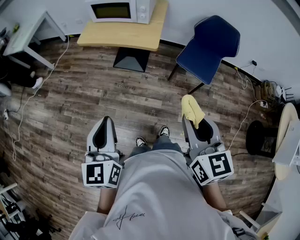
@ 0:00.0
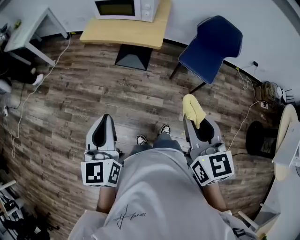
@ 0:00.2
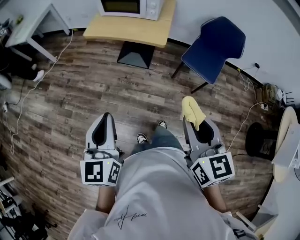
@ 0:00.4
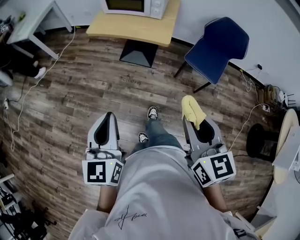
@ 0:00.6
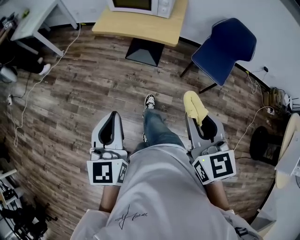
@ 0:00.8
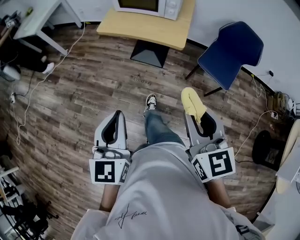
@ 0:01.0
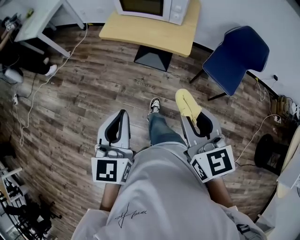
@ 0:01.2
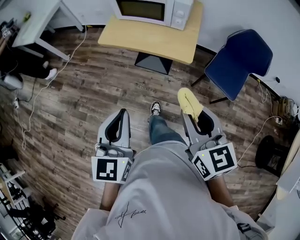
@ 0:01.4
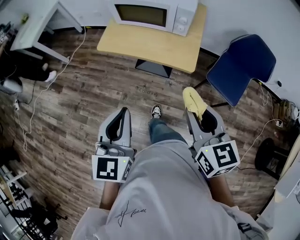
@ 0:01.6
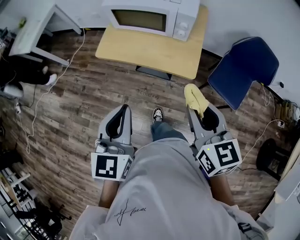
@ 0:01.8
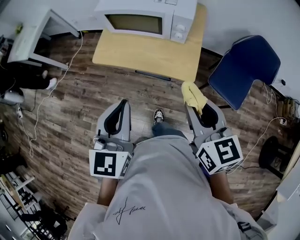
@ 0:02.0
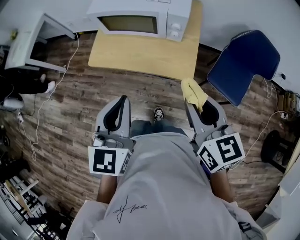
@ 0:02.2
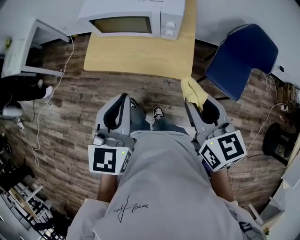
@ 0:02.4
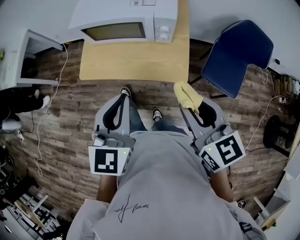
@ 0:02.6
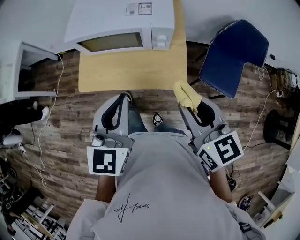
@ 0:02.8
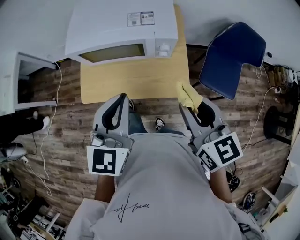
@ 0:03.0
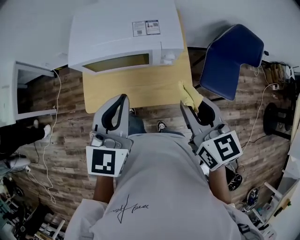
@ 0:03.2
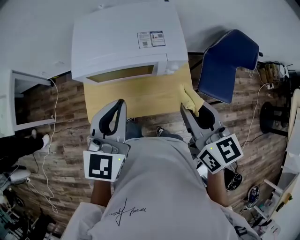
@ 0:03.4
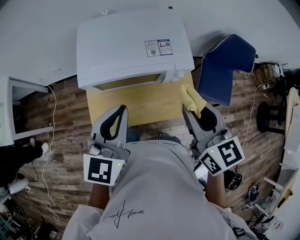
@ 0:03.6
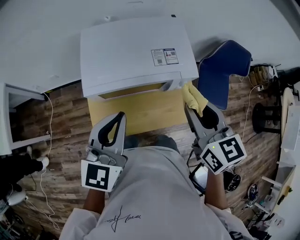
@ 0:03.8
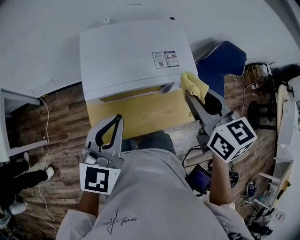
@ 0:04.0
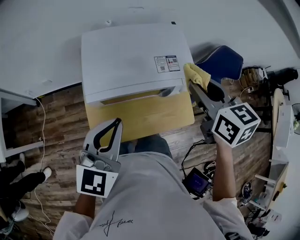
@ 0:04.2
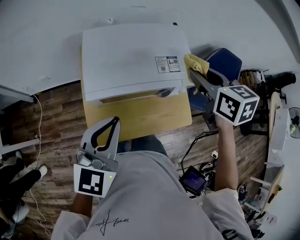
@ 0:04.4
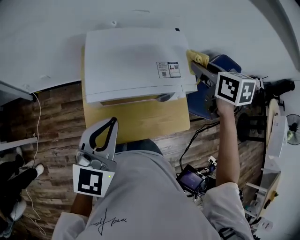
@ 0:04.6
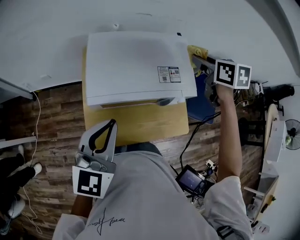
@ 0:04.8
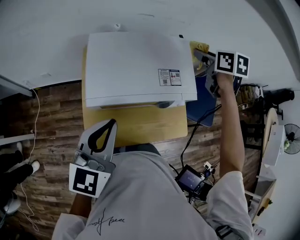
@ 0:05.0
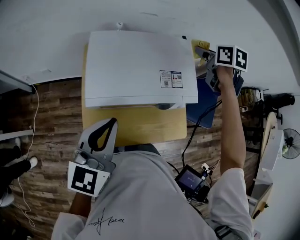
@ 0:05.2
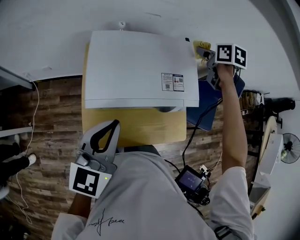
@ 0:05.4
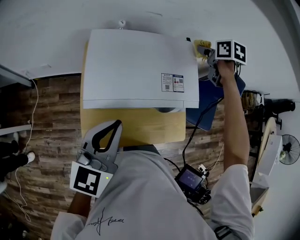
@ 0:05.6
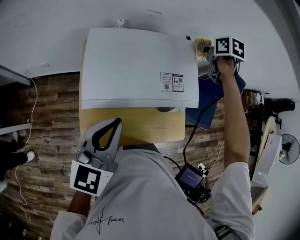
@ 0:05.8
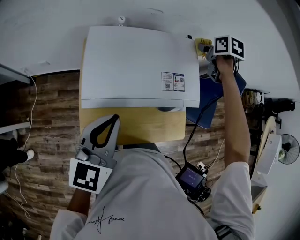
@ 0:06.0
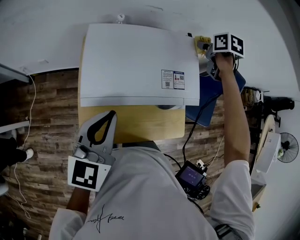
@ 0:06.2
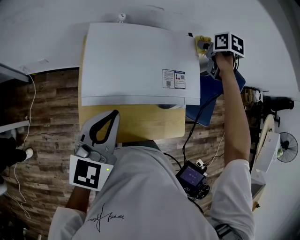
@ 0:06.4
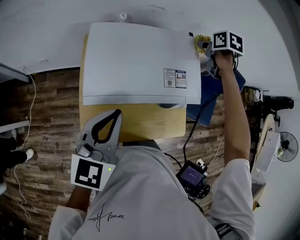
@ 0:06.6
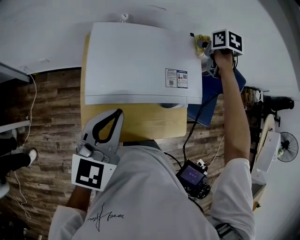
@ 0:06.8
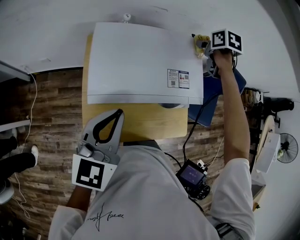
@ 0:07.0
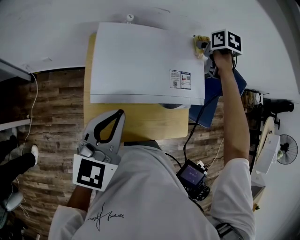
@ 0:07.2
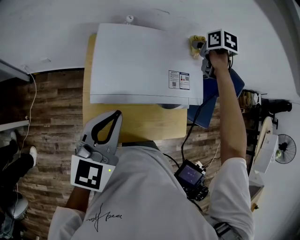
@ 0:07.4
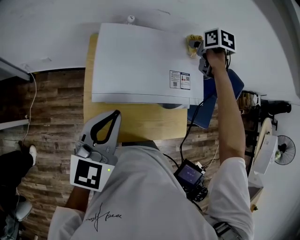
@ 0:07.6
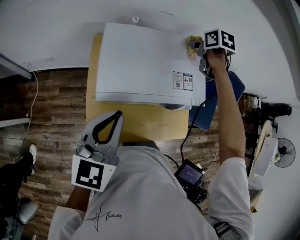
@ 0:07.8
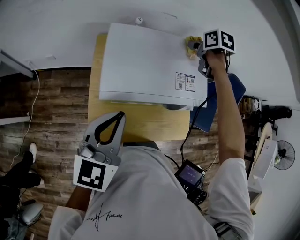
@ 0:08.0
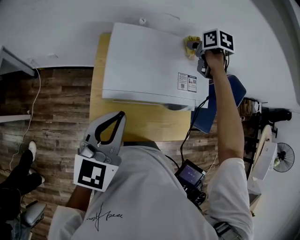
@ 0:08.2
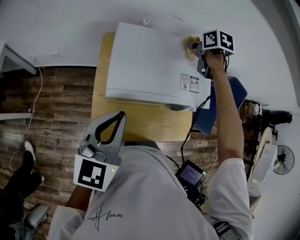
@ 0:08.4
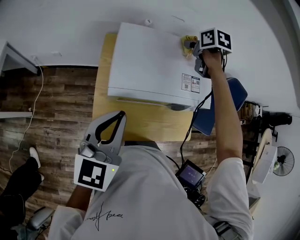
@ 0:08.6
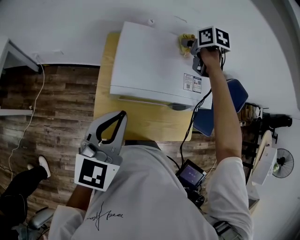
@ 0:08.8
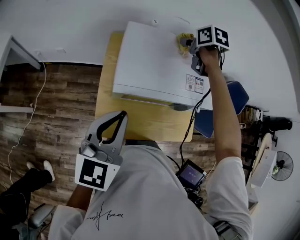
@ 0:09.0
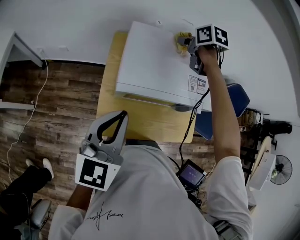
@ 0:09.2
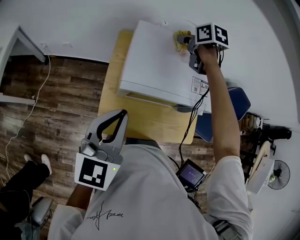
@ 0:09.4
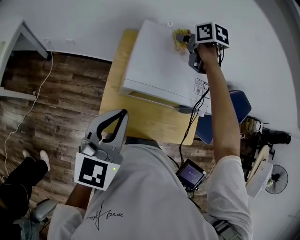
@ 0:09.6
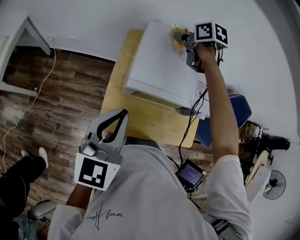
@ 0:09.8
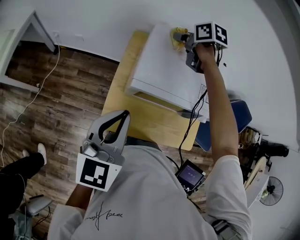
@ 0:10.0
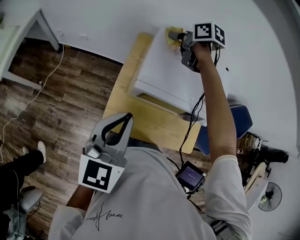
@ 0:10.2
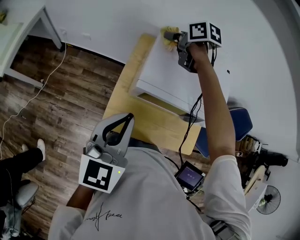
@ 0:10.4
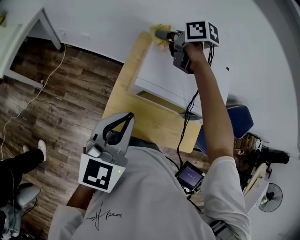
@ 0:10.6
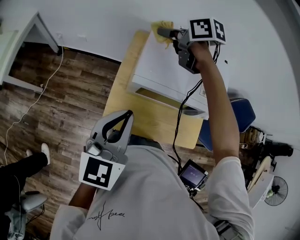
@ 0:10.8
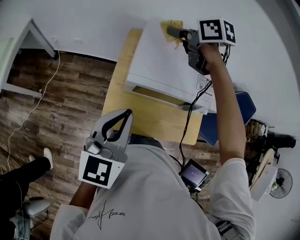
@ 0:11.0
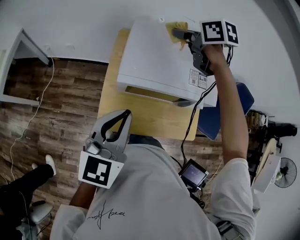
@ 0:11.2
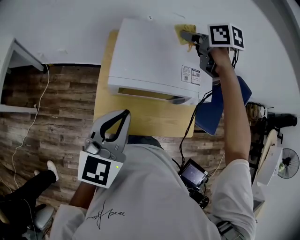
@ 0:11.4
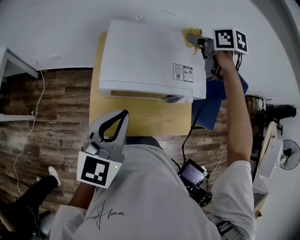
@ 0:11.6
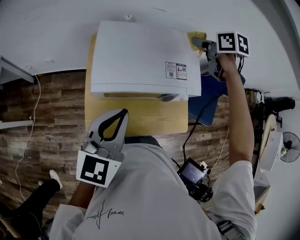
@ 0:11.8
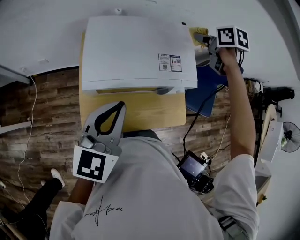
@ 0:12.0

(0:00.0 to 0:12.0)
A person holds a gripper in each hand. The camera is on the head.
0:00.0 - 0:01.6: Both grippers move forward, some 25 cm.
0:01.6 - 0:03.0: Both grippers travel together forward, approximately 25 cm. The left gripper swivels some 20 degrees.
0:03.0 - 0:04.4: The right gripper moves forward and to the left, roughly 25 cm, and swivels about 20 degrees. Meanwhile the left gripper heads to the left and forward, covering some 20 cm.
0:04.4 - 0:06.0: The left gripper moves forward, approximately 5 cm; the right gripper travels forward by roughly 25 cm, and swivels roughly 20 degrees.
0:06.0 - 0:07.6: The right gripper shifts about 10 cm to the left.
0:07.6 - 0:09.0: The left gripper ends up approximately 5 cm from where it was, while the right gripper goes roughly 15 cm to the left.
0:09.0 - 0:10.4: The right gripper heads to the left, covering roughly 20 cm, and changes its angle by approximately 30 degrees.
0:10.4 - 0:12.0: The right gripper changes place by about 40 cm, and changes its angle by roughly 30 degrees; the left gripper changes place by about 15 cm.

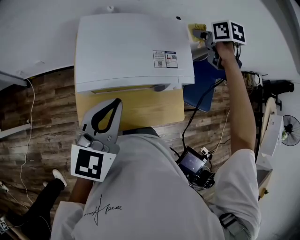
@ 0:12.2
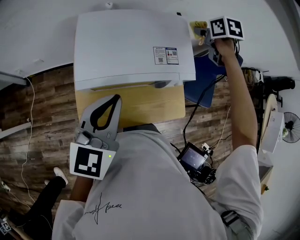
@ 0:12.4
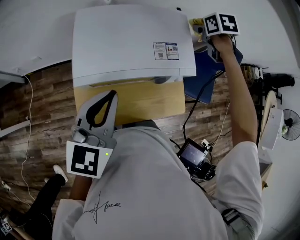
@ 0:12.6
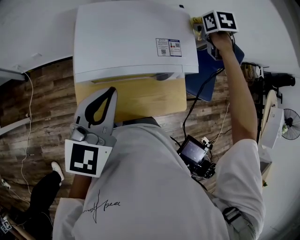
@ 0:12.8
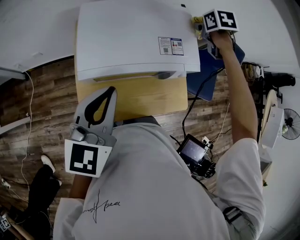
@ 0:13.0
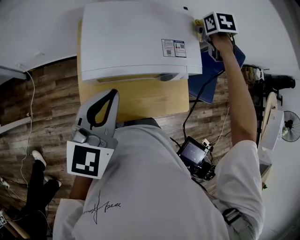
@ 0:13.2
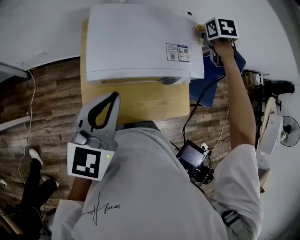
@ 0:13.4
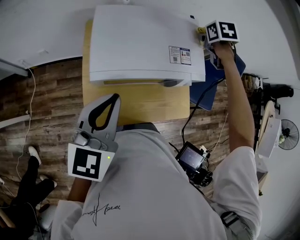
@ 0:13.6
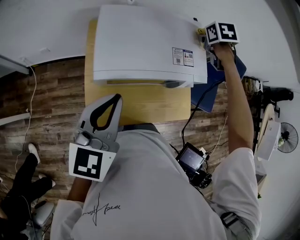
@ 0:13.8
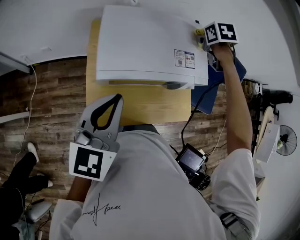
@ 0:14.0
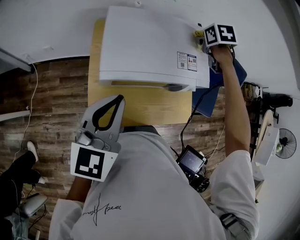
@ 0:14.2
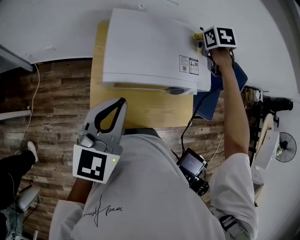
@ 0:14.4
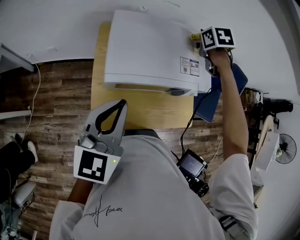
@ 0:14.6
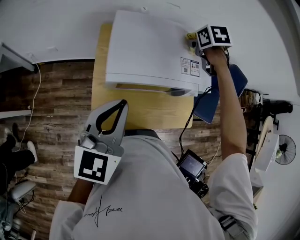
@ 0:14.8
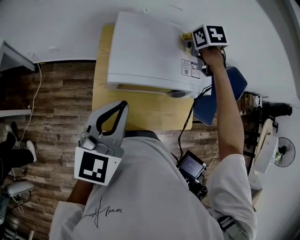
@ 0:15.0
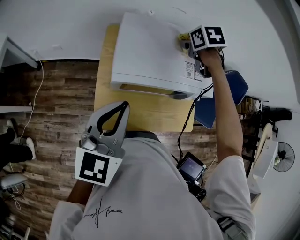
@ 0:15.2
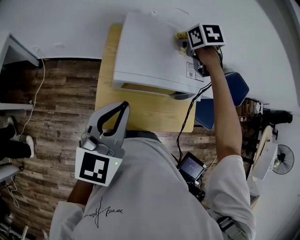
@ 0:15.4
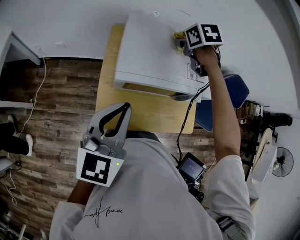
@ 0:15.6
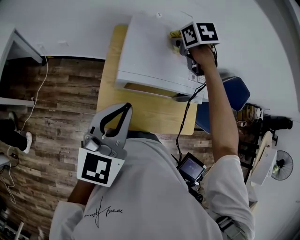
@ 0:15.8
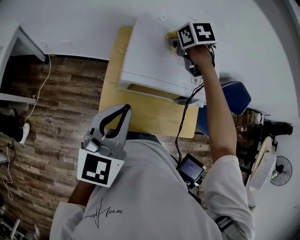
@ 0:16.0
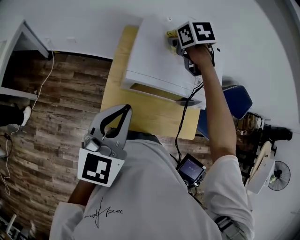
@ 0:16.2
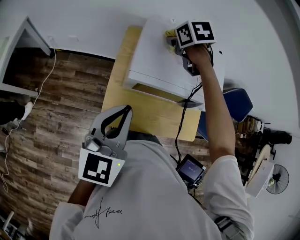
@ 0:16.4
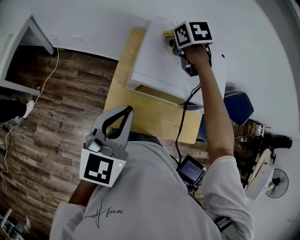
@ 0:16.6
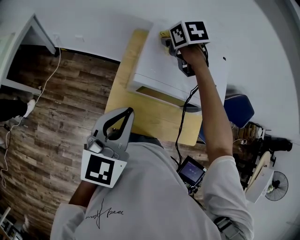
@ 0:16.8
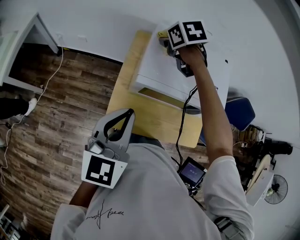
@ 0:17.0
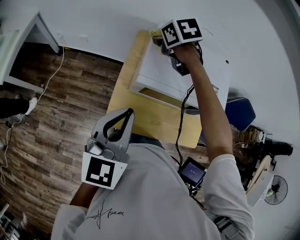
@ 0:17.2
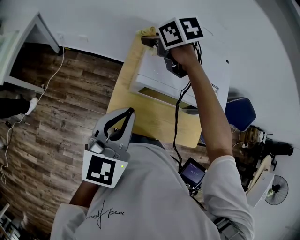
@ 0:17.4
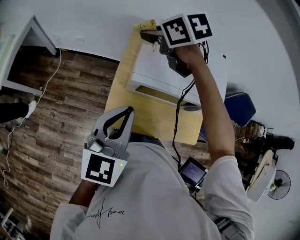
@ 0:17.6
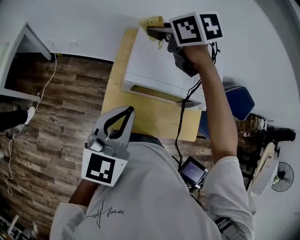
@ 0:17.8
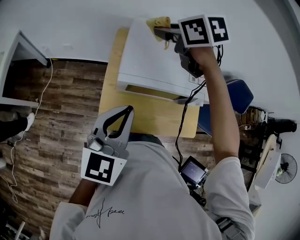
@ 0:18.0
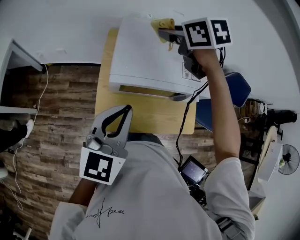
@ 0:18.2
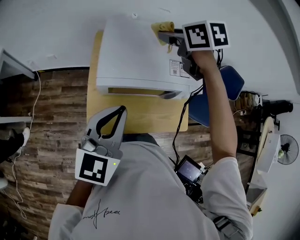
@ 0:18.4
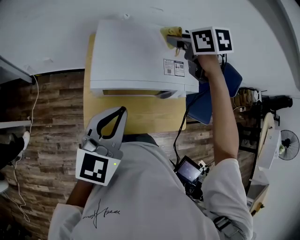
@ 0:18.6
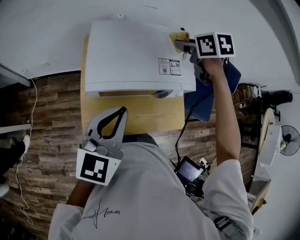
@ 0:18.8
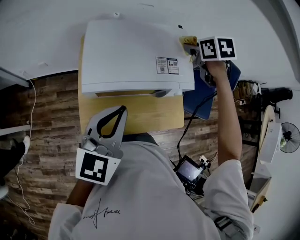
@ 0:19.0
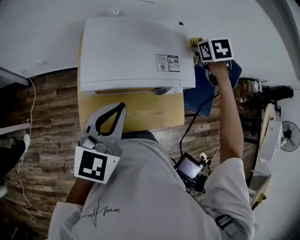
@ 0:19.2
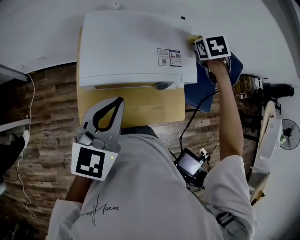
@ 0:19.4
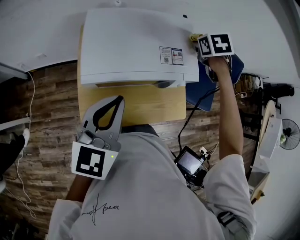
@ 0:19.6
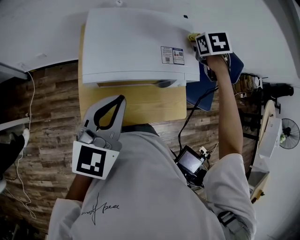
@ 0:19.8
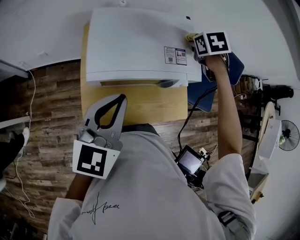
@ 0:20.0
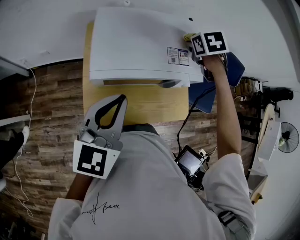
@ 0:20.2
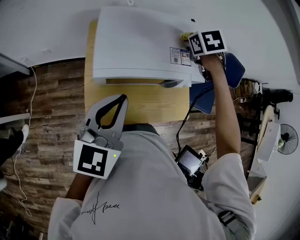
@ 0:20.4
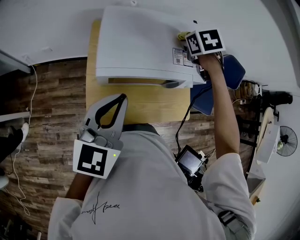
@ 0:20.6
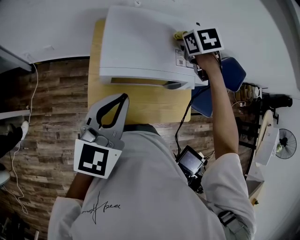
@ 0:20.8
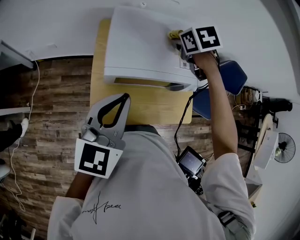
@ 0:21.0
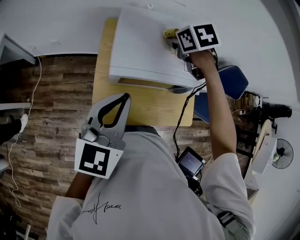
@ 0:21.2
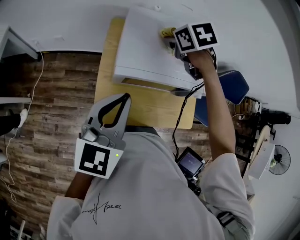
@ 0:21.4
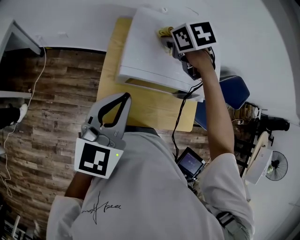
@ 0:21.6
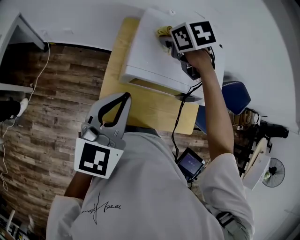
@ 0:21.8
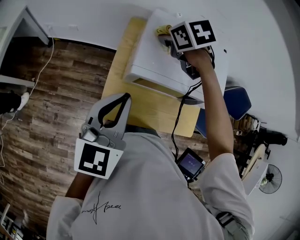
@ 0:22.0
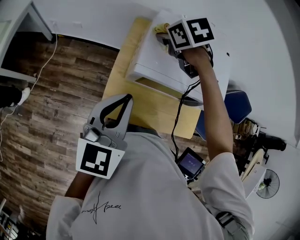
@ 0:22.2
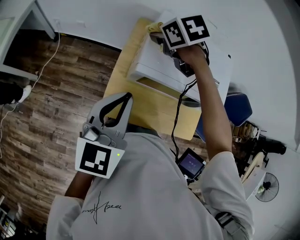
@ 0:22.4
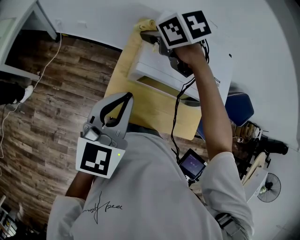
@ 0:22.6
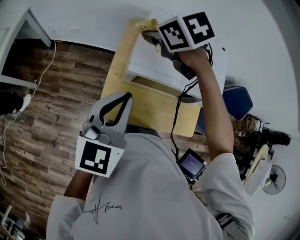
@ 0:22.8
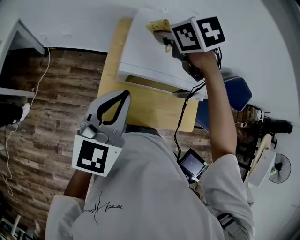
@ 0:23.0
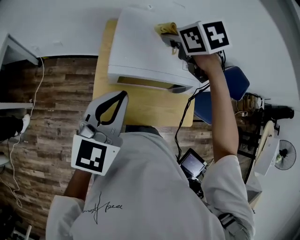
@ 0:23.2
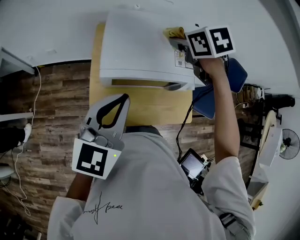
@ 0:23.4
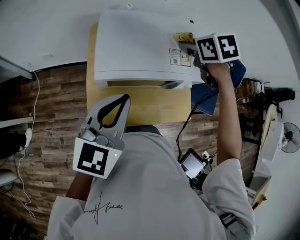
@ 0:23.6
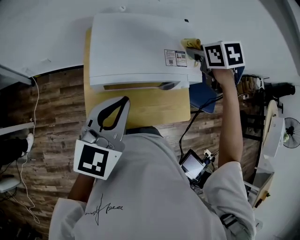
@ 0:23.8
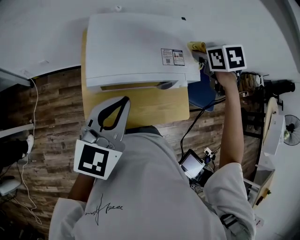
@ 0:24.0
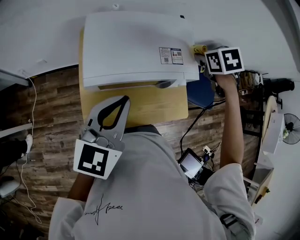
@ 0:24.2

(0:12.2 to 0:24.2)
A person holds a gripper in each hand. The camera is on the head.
0:12.2 - 0:13.8: The left gripper travels to the left by about 5 cm; the right gripper turns by some 20 degrees.
0:13.8 - 0:15.2: The right gripper goes some 15 cm to the left.
0:15.2 - 0:16.6: The right gripper heads to the left, covering about 15 cm.
0:16.6 - 0:18.2: The right gripper goes approximately 10 cm upward, and travels to the left and back again, some 10 cm each way; the left gripper goes approximately 5 cm to the right.
0:18.2 - 0:19.8: The left gripper shifts by about 5 cm. Meanwhile the right gripper shifts by some 30 cm, and swivels approximately 40 degrees.
0:19.8 - 0:21.2: The right gripper shifts approximately 20 cm to the left, and swivels roughly 20 degrees; the left gripper moves to the left, roughly 5 cm.
0:21.2 - 0:22.6: The left gripper ends up approximately 5 cm from where it was. Meanwhile the right gripper shifts by roughly 25 cm, and swivels approximately 30 degrees.
0:22.6 - 0:24.2: The right gripper shifts by roughly 40 cm, and swivels about 50 degrees; the left gripper ends up roughly 15 cm from where it was, and rotates some 20 degrees.
